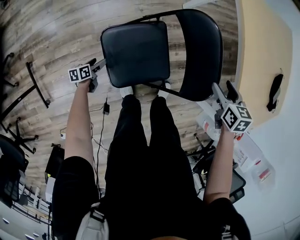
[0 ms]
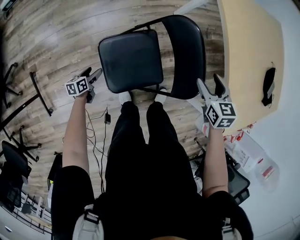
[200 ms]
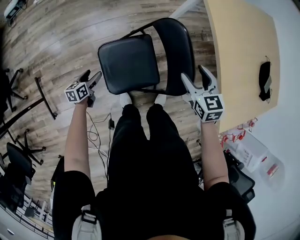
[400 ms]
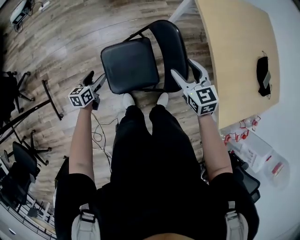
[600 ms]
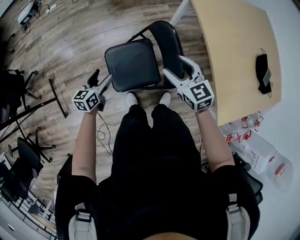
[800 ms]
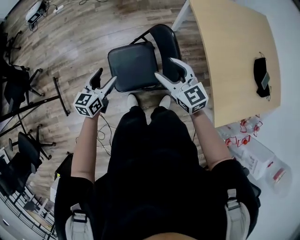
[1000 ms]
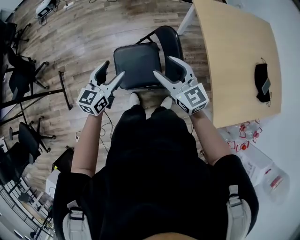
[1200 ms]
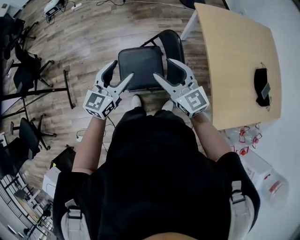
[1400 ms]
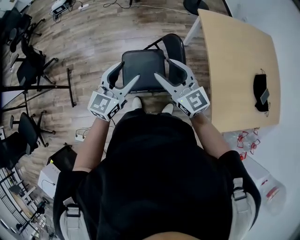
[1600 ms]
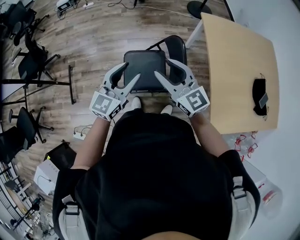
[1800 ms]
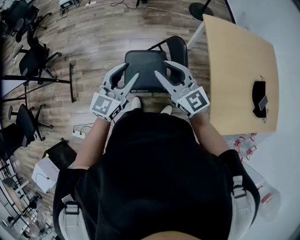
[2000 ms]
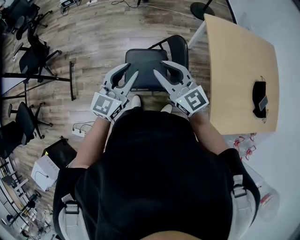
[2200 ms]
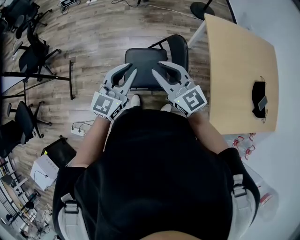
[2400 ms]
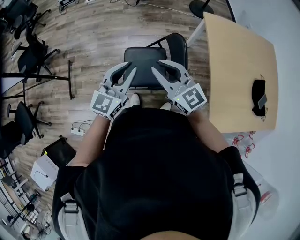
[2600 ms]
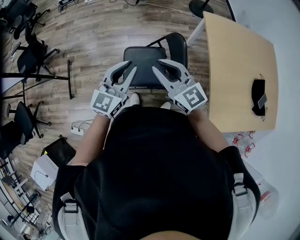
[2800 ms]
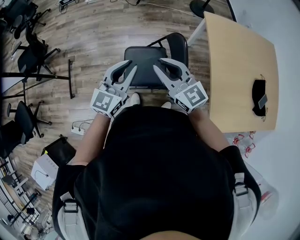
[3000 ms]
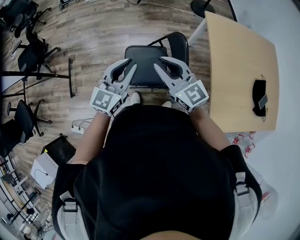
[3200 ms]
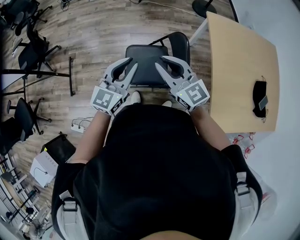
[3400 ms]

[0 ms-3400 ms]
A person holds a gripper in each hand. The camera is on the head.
0 ms to 1600 ms: The right gripper heads upward, covering approximately 35 cm, and tips its fingers upward by some 50 degrees; the left gripper moves upward, approximately 70 cm, and tips its fingers upward by about 30 degrees.
1600 ms to 3400 ms: The left gripper closes. The right gripper closes.

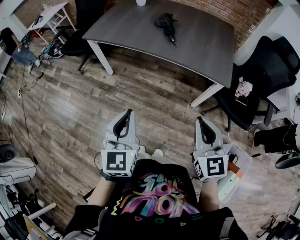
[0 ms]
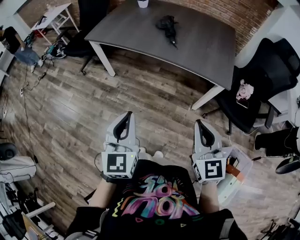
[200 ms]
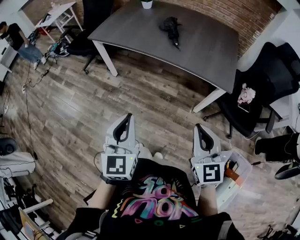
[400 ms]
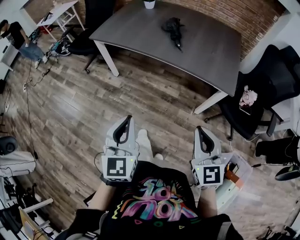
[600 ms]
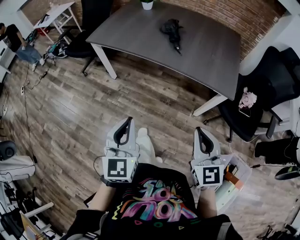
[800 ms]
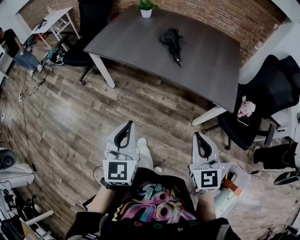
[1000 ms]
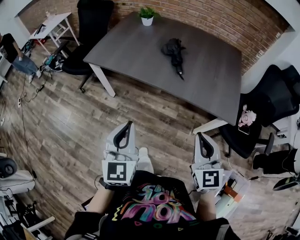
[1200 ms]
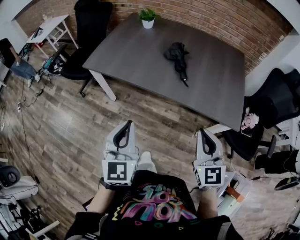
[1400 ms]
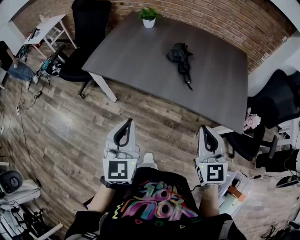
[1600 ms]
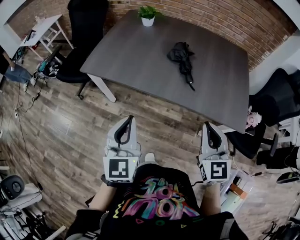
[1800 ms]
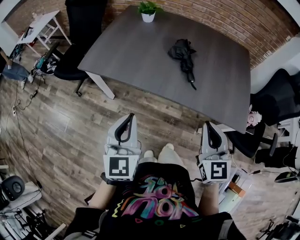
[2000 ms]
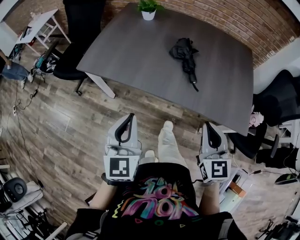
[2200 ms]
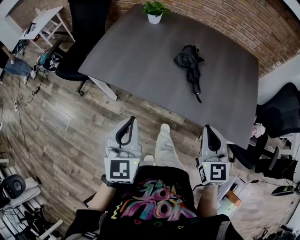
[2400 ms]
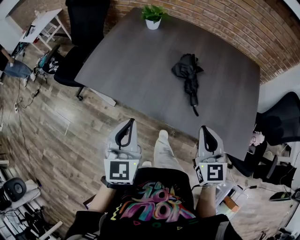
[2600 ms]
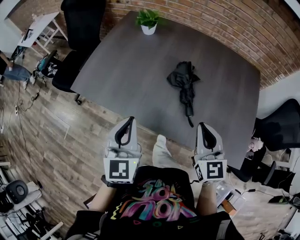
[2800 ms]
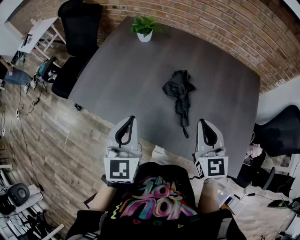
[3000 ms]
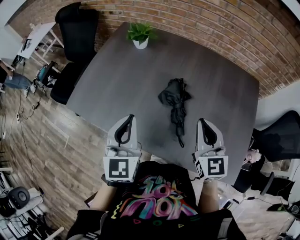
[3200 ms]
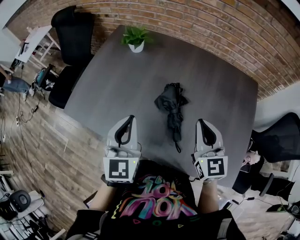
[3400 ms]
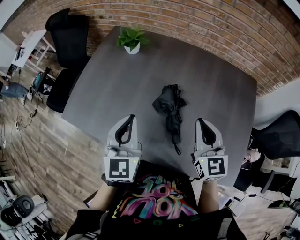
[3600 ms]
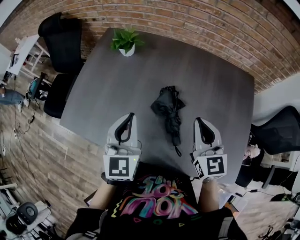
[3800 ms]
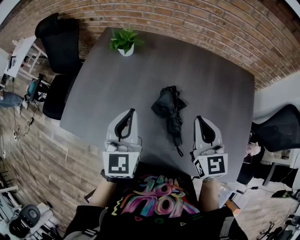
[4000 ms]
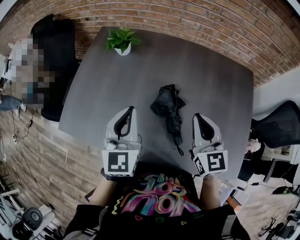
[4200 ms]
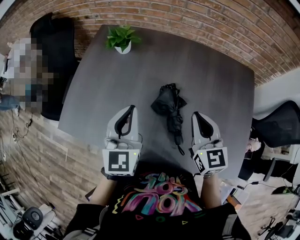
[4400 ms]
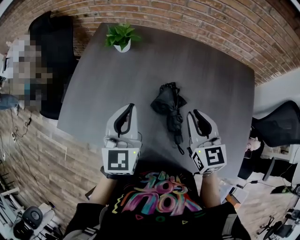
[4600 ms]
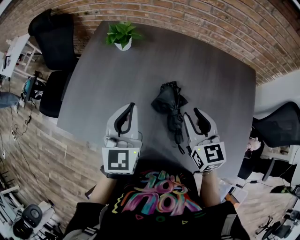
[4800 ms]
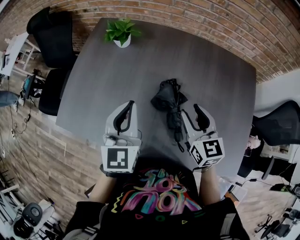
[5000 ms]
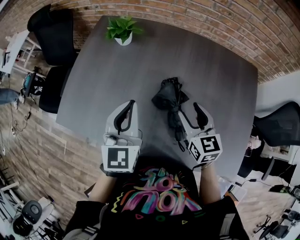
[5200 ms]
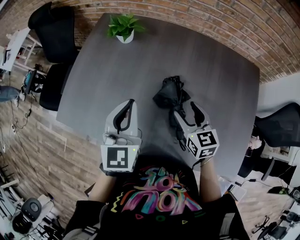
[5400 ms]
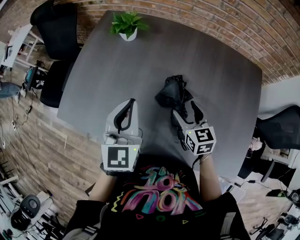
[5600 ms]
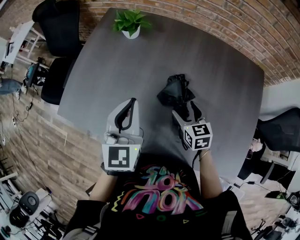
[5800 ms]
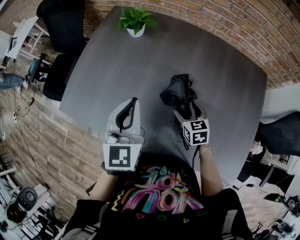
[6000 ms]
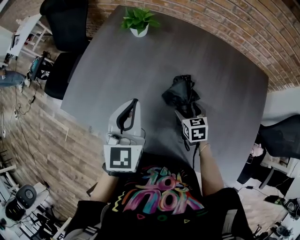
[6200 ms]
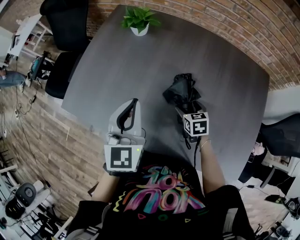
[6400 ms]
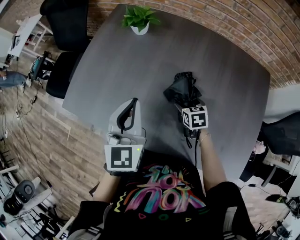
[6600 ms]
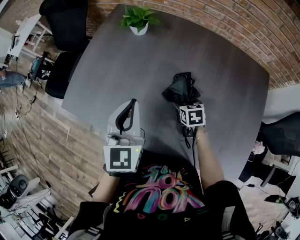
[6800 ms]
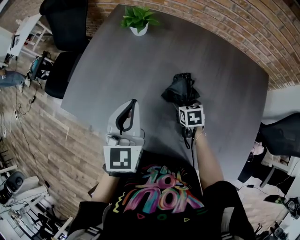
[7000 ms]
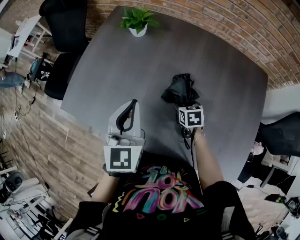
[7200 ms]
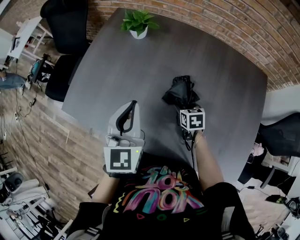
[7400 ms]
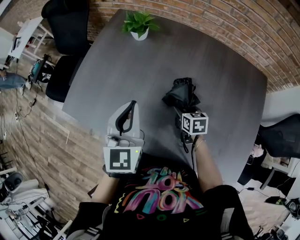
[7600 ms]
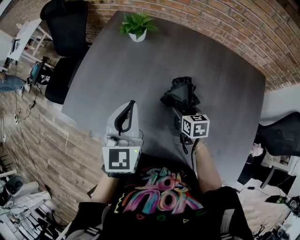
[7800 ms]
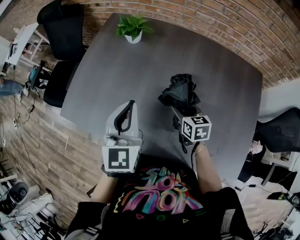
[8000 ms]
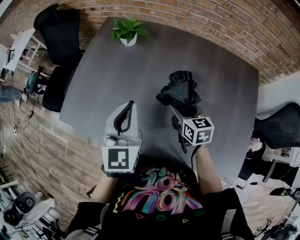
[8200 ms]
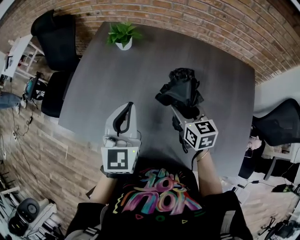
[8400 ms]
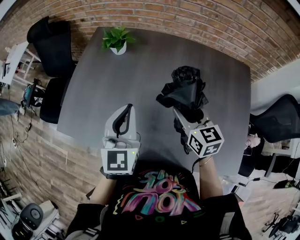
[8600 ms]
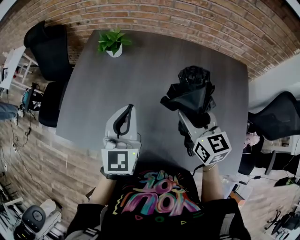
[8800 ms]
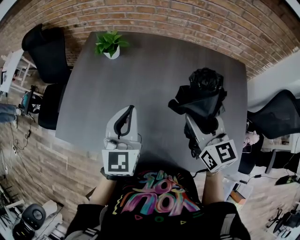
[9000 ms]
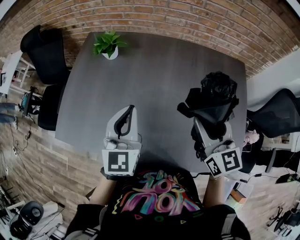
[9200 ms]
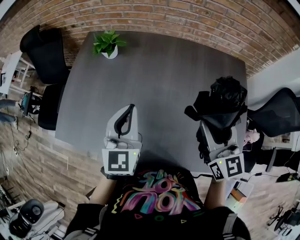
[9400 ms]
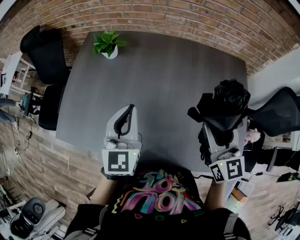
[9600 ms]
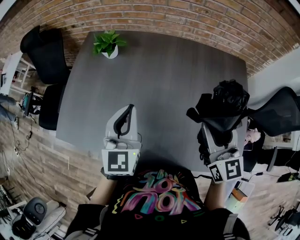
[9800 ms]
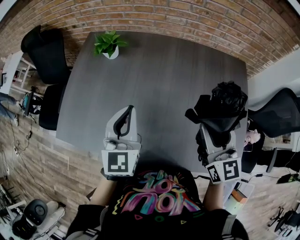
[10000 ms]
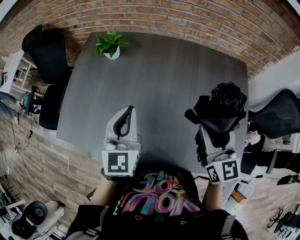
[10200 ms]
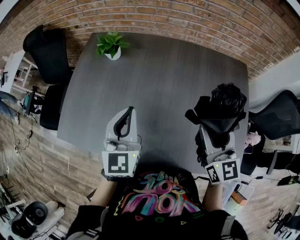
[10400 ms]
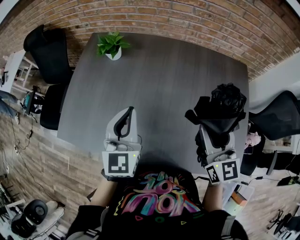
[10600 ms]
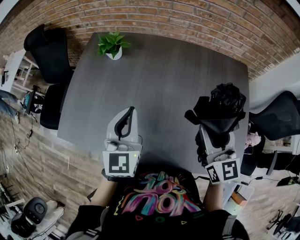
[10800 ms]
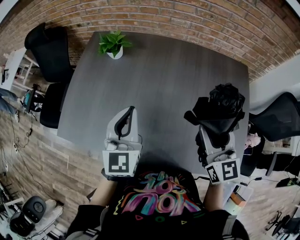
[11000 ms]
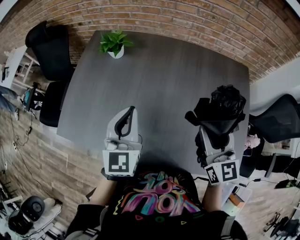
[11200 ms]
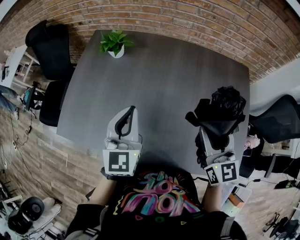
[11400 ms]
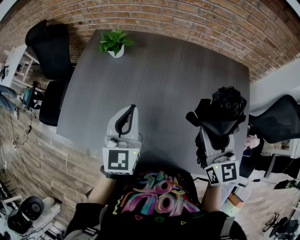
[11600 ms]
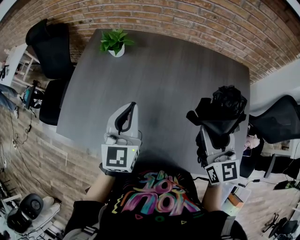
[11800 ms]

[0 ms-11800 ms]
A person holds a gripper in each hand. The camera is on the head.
0 ms to 1400 ms: The grippers both shift forward by about 20 cm.
1400 ms to 3000 ms: Both grippers move forward, some 35 cm.
3000 ms to 4400 ms: Both grippers travel together forward, roughly 15 cm.
4400 ms to 6000 ms: The right gripper travels downward by some 20 cm, swivels approximately 30 degrees, and opens.
6000 ms to 7400 ms: The right gripper changes place by roughly 5 cm.
7400 ms to 8800 ms: The right gripper travels upward by about 25 cm, and tips its fingers upward by about 40 degrees. Meanwhile the left gripper travels to the right by some 5 cm.
8800 ms to 10400 ms: The right gripper shifts roughly 10 cm to the right and backward.
10400 ms to 11800 ms: Both grippers stay about where they are.

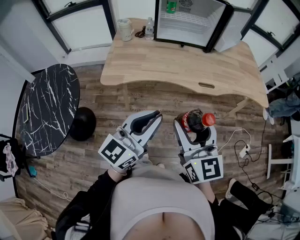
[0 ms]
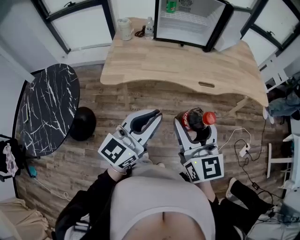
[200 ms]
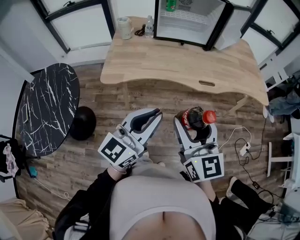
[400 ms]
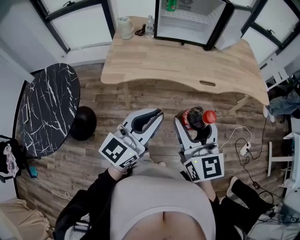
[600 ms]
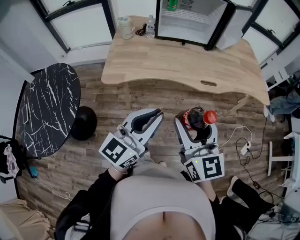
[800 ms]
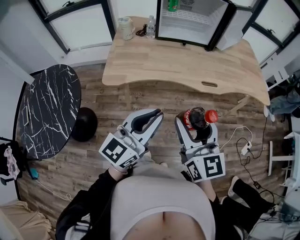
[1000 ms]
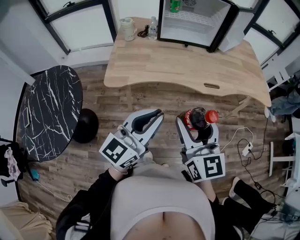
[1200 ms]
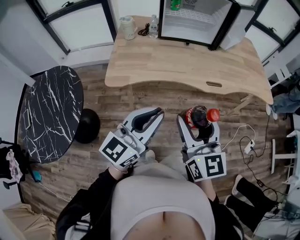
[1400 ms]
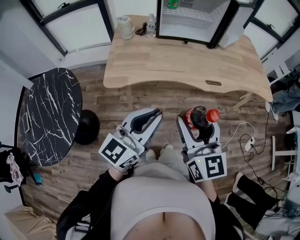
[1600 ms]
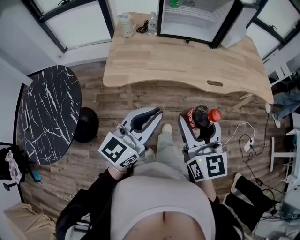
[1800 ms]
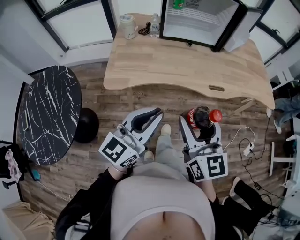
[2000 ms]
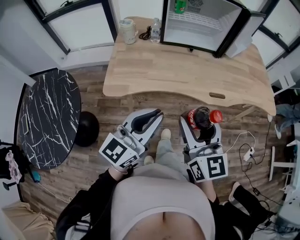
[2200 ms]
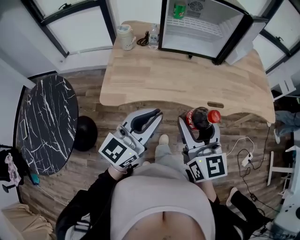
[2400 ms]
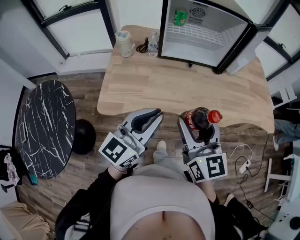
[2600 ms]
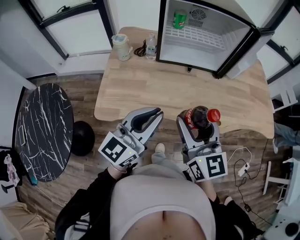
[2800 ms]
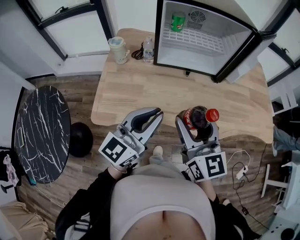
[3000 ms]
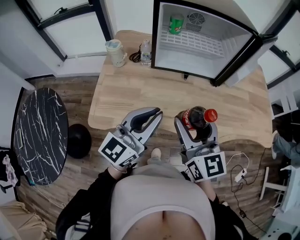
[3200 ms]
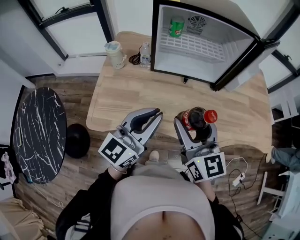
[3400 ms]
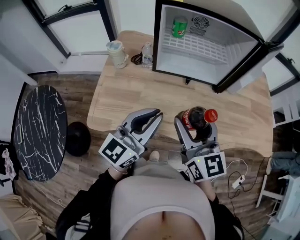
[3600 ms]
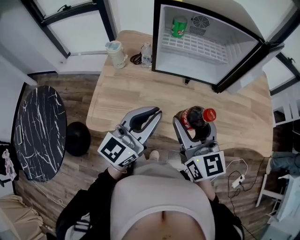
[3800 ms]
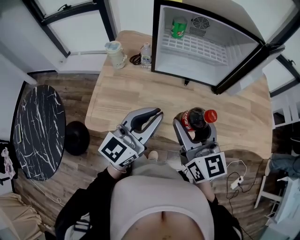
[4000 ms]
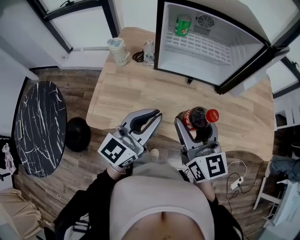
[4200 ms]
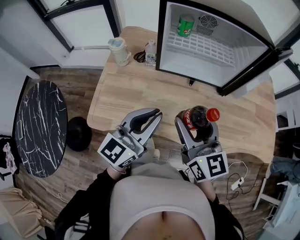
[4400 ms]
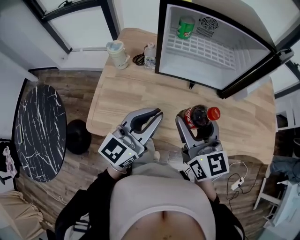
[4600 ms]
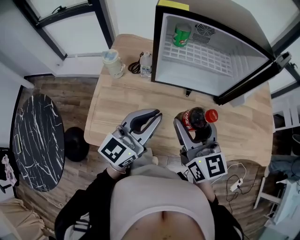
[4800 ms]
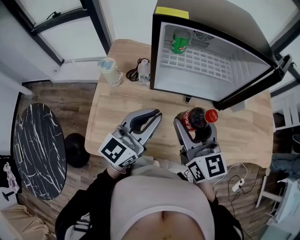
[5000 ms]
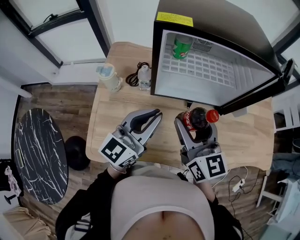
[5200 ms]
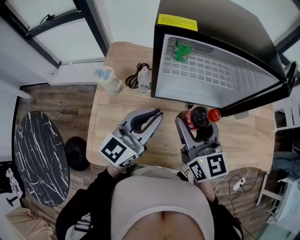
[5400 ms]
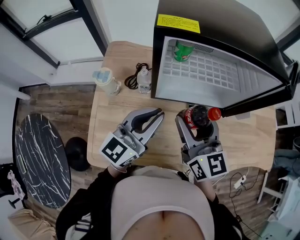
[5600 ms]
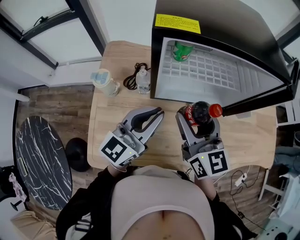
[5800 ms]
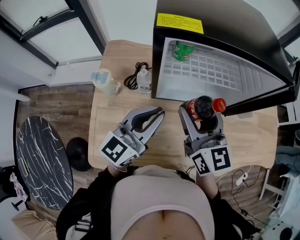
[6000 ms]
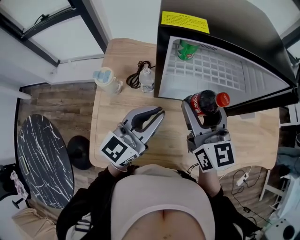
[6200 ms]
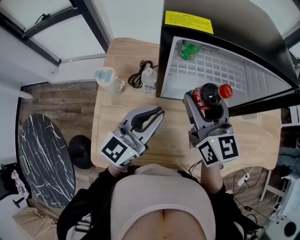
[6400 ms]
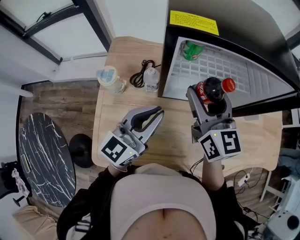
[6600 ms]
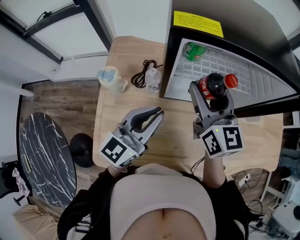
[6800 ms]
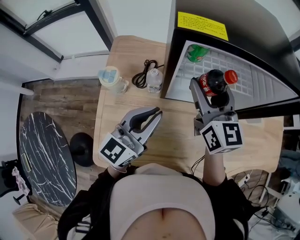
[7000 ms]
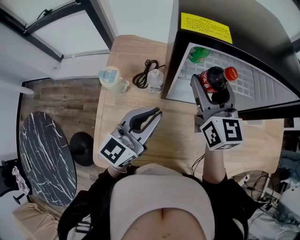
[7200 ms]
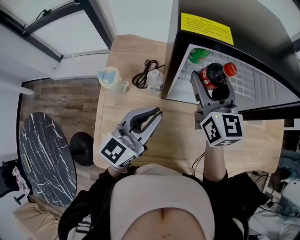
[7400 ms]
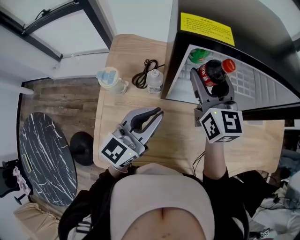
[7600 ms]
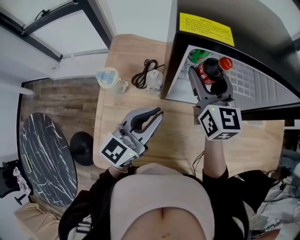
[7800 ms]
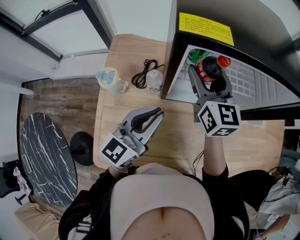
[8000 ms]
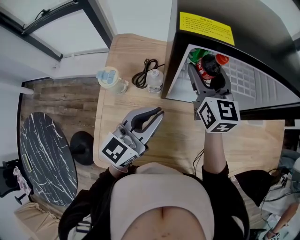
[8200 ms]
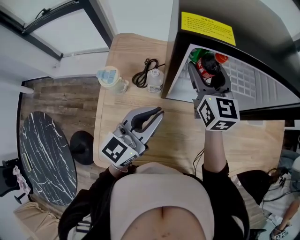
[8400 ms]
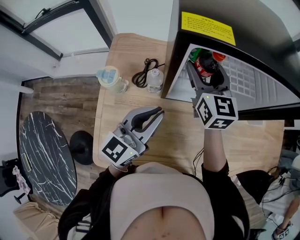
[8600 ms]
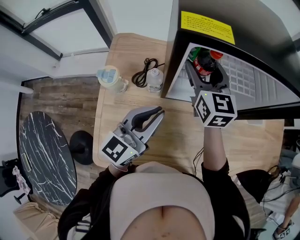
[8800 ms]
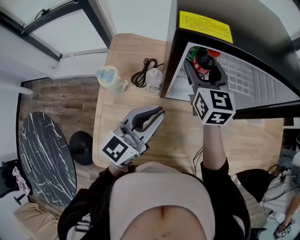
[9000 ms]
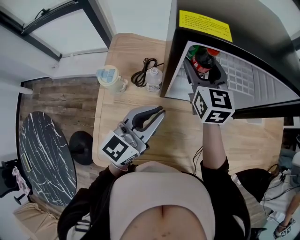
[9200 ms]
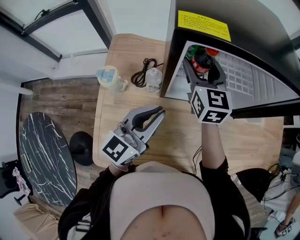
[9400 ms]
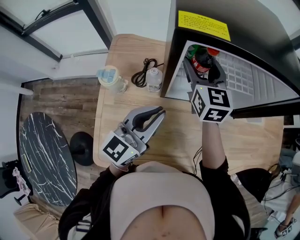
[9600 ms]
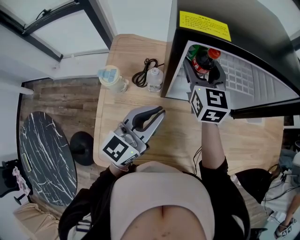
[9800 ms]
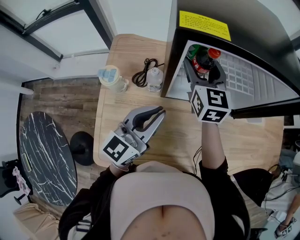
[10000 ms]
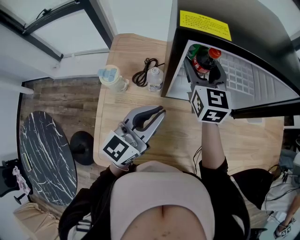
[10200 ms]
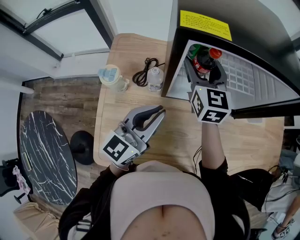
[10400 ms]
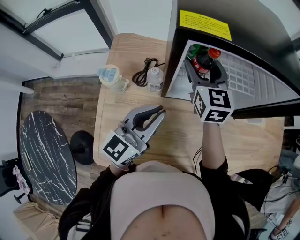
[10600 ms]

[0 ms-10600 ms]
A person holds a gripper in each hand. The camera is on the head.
0 ms to 1600 ms: The left gripper goes roughly 5 cm to the left, while the right gripper shifts by approximately 5 cm.
1600 ms to 3000 ms: The grippers both shift forward by some 25 cm.
3000 ms to 4600 ms: The two grippers go about 10 cm forward.
4600 ms to 6000 ms: Both grippers travel together forward, approximately 15 cm.
6000 ms to 7600 ms: The left gripper shifts by approximately 5 cm. The right gripper goes approximately 10 cm forward.
7600 ms to 9000 ms: The right gripper shifts by about 5 cm.
9000 ms to 10600 ms: Neither gripper changes place.
